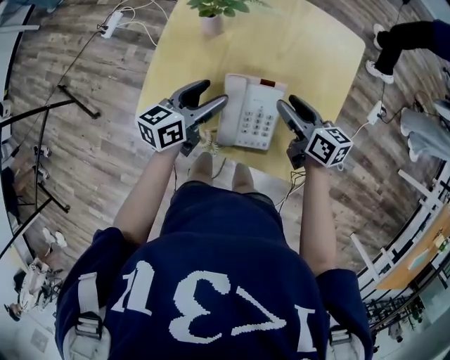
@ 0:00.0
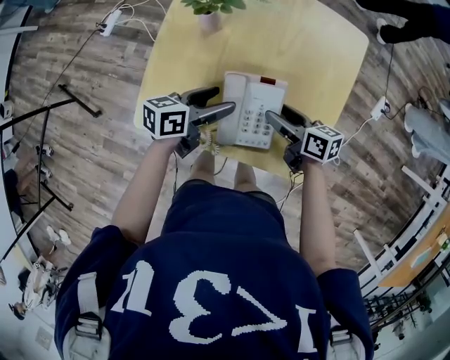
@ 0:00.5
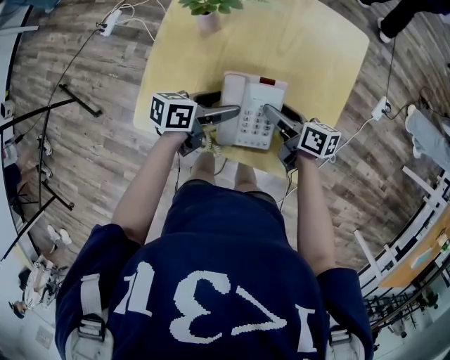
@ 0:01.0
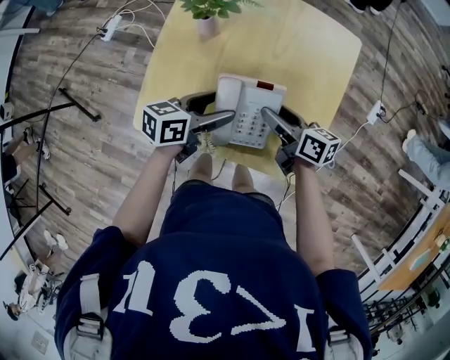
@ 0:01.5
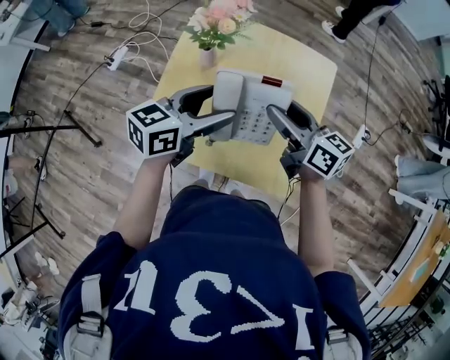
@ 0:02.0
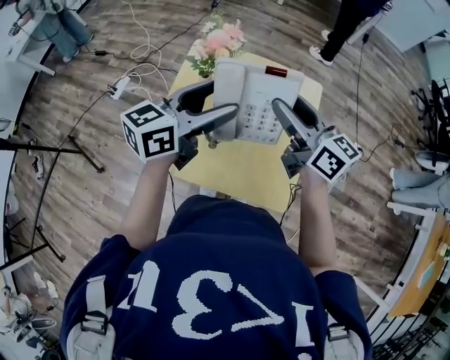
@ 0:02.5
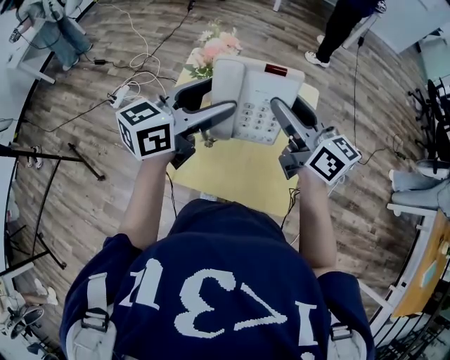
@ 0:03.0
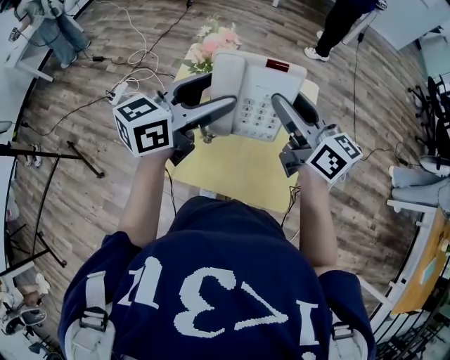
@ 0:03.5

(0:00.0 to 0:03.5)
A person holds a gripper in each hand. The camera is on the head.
0:00.0 - 0:02.0: Both grippers travel together upward, approximately 15 cm.
0:02.0 - 0:03.5: The two grippers go approximately 15 cm upward.

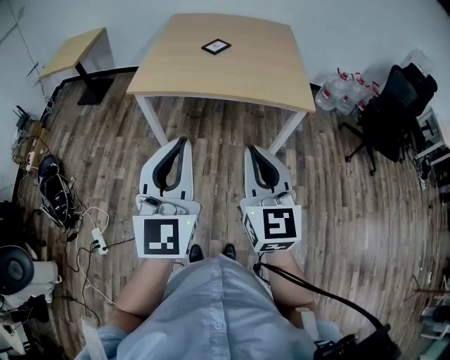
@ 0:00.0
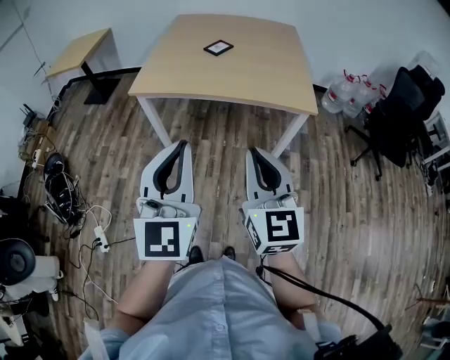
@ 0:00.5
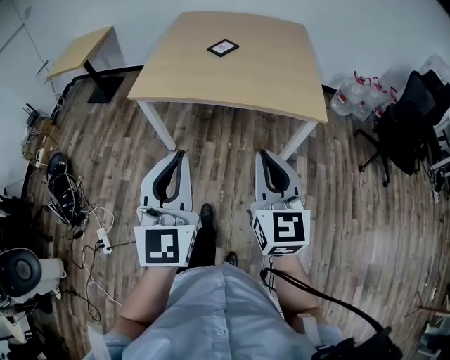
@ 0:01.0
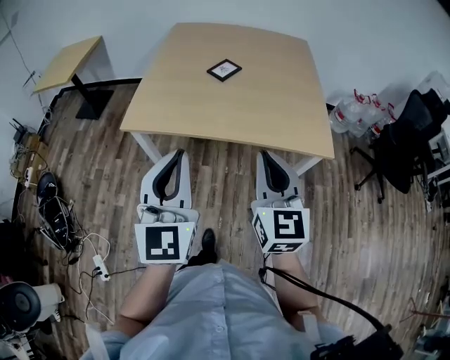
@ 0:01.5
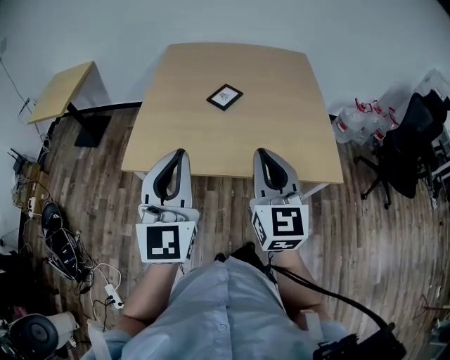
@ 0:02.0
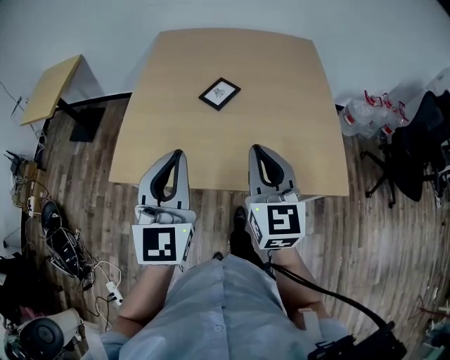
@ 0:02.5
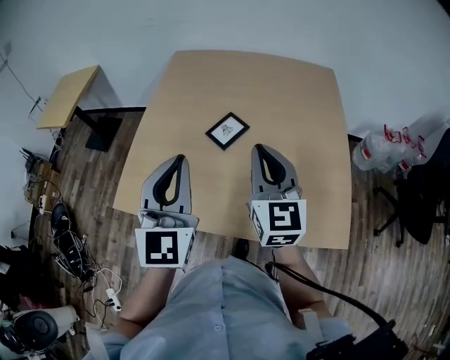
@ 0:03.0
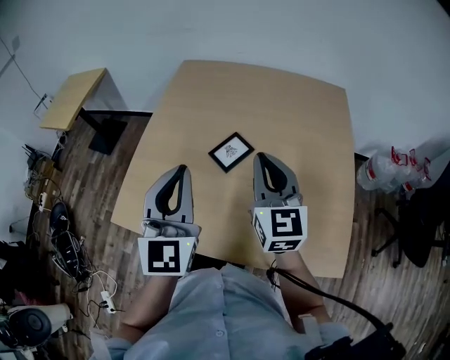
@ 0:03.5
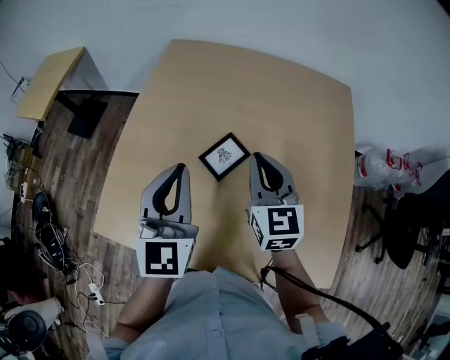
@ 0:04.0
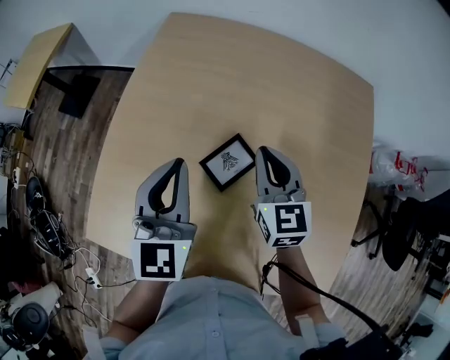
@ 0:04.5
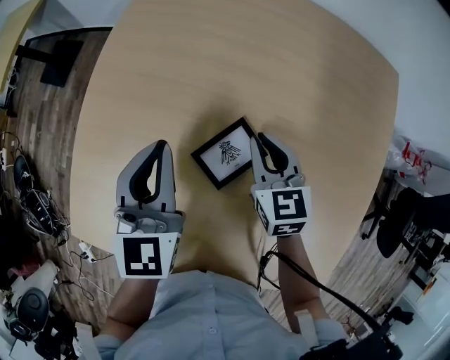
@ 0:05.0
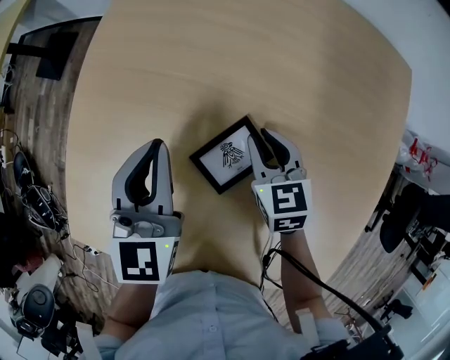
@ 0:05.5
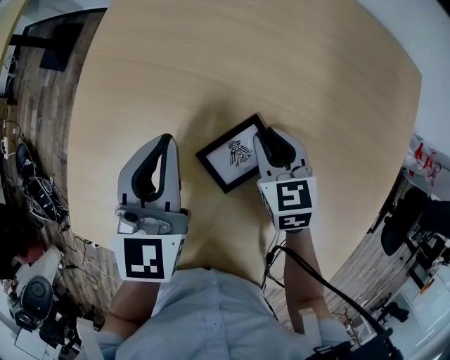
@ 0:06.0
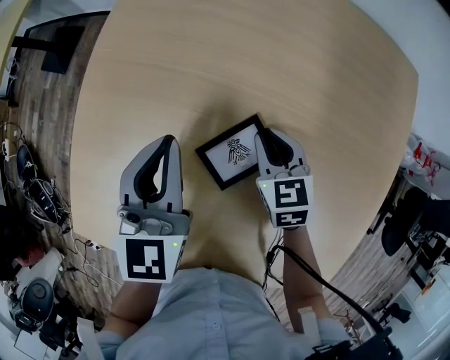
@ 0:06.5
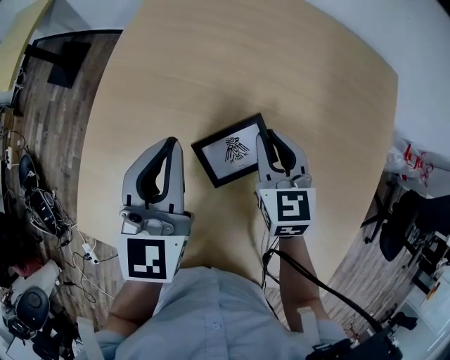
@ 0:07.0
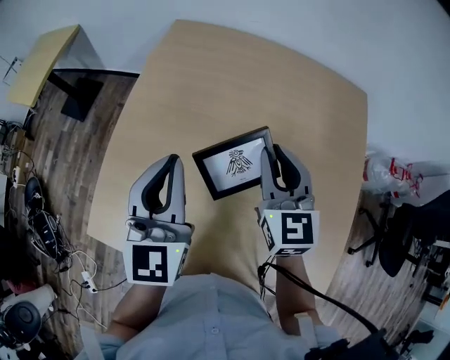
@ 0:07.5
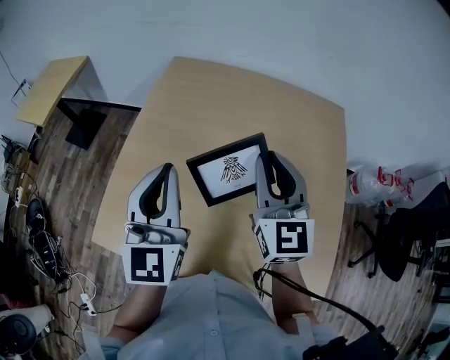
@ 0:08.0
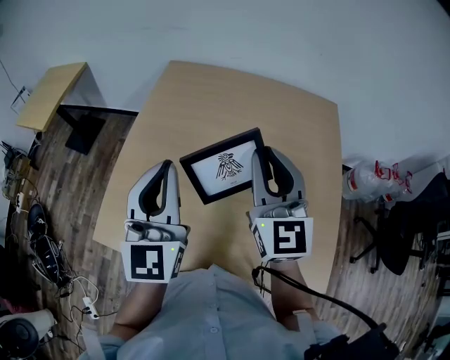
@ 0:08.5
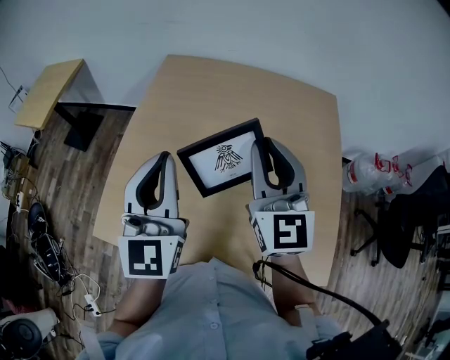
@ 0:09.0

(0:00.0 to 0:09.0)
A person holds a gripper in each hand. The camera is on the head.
0:00.0 - 0:02.0: The two grippers go some 30 cm forward.
0:02.0 - 0:04.5: Both grippers move forward, roughly 35 cm. The left gripper turns by some 20 degrees. Meanwhile the right gripper swivels some 20 degrees.
0:04.5 - 0:07.0: The right gripper travels downward by approximately 5 cm. Meanwhile the left gripper moves some 10 cm downward and comes back.
0:07.0 - 0:09.0: The right gripper moves upward, some 25 cm, and tips its fingers upward by some 30 degrees. The left gripper is displaced upward and backward by about 15 cm, and changes its angle by roughly 30 degrees.

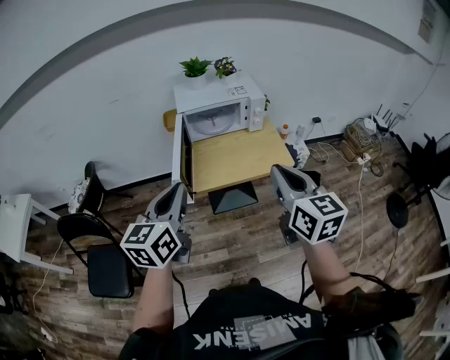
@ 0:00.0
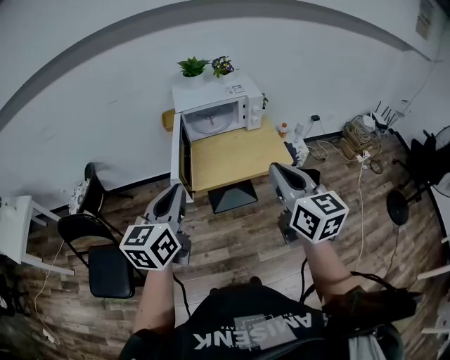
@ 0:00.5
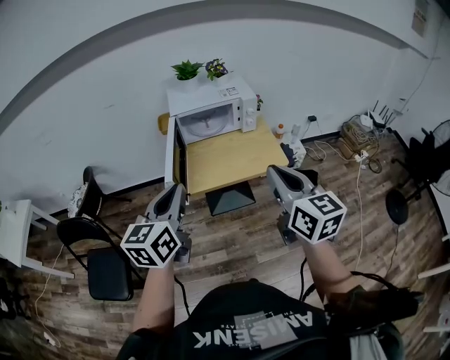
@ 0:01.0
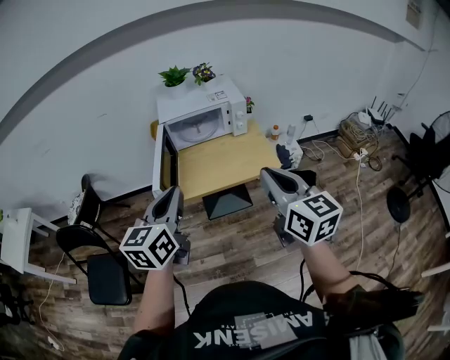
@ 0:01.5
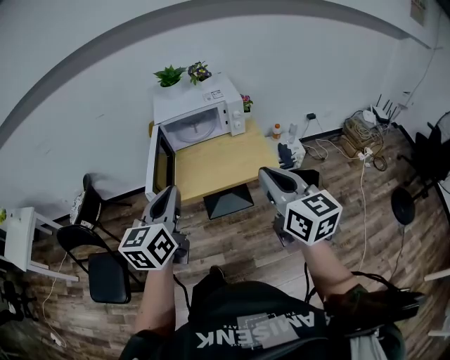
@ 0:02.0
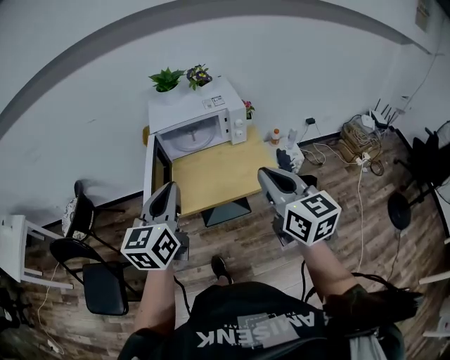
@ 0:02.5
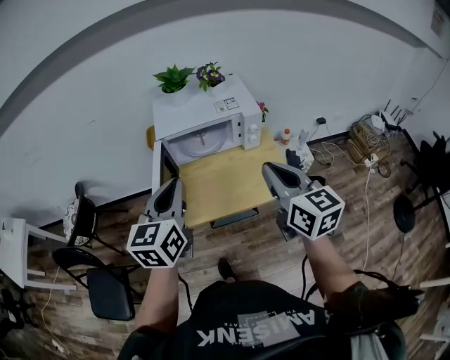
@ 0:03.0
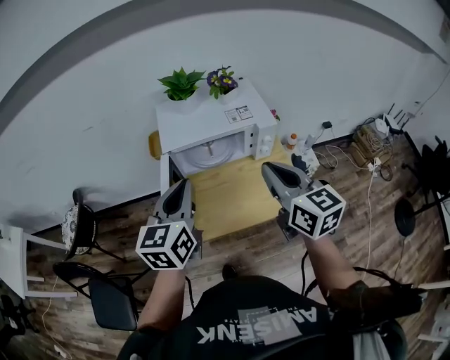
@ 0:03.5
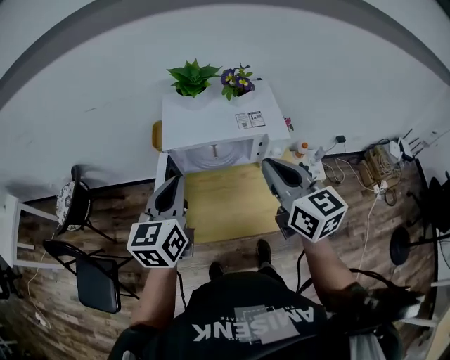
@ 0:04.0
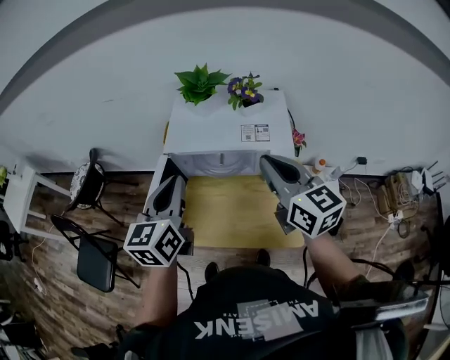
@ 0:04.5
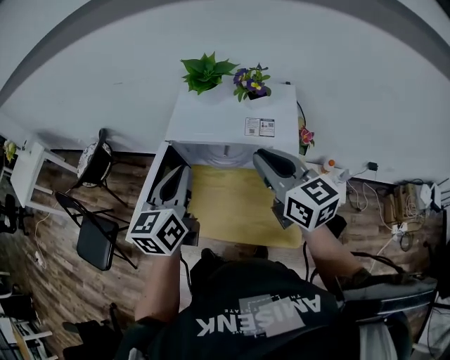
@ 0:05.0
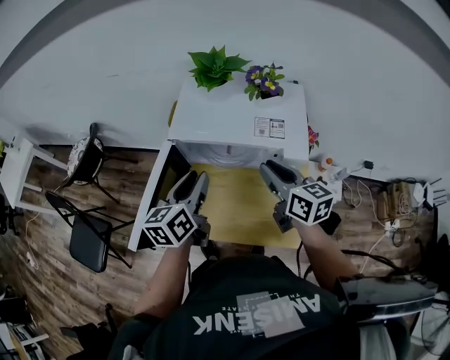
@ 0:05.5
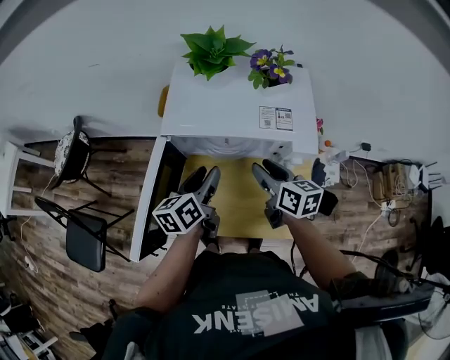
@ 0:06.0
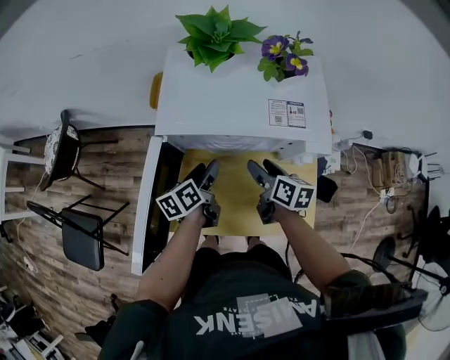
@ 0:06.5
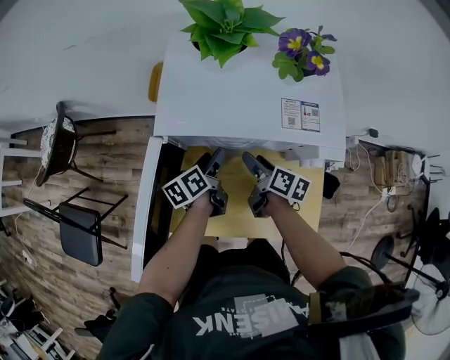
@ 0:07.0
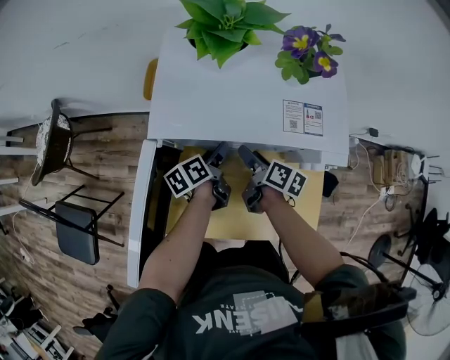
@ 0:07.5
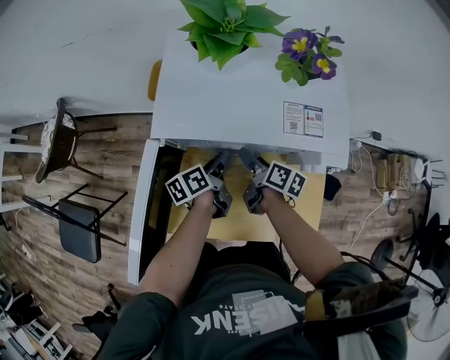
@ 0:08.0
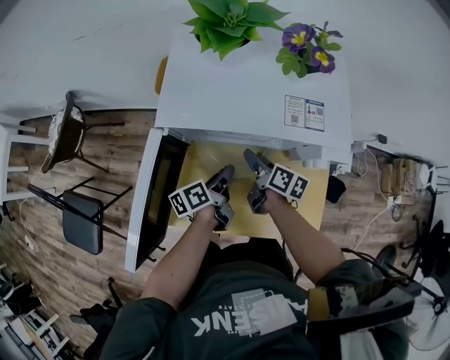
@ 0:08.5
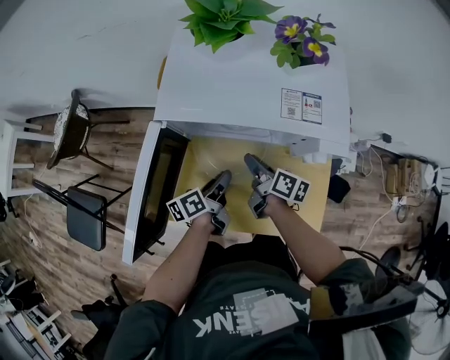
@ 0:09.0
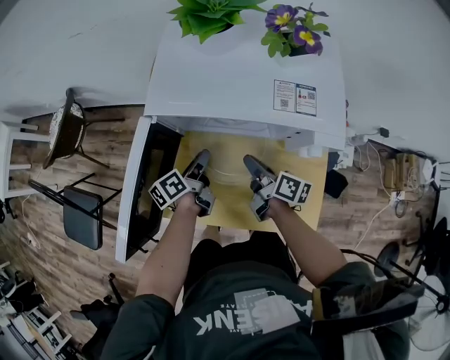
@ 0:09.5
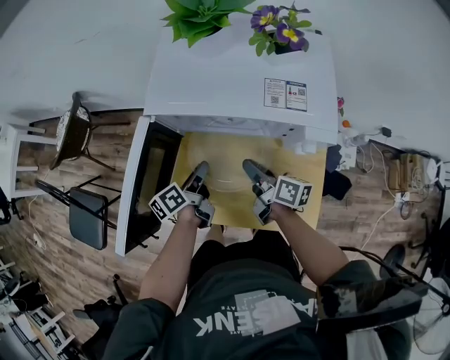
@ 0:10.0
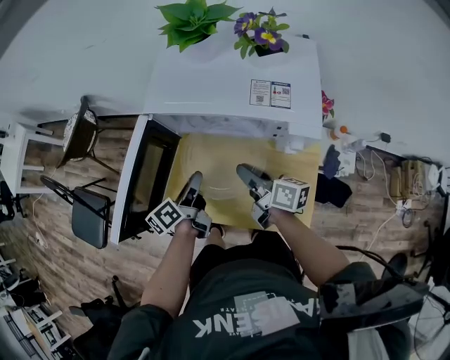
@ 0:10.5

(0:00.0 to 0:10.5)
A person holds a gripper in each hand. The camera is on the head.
0:00.0 - 0:02.0: The two grippers go roughly 10 cm to the right.
0:02.0 - 0:04.0: Both grippers move forward, some 35 cm.
0:04.0 - 0:06.5: The left gripper moves downward, roughly 30 cm, twists approximately 40 degrees counterclockwise, seen from behind, and opens up. The right gripper travels downward and forward by roughly 35 cm, rotates some 40 degrees, and opens.
0:06.5 - 0:08.5: The right gripper travels downward by approximately 5 cm. The left gripper moves approximately 5 cm forward and comes back, and closes its fingers.
0:08.5 - 0:10.5: The right gripper goes some 10 cm backward and upward, rotates roughly 30 degrees, and closes up; the left gripper travels backward and to the left by some 10 cm.

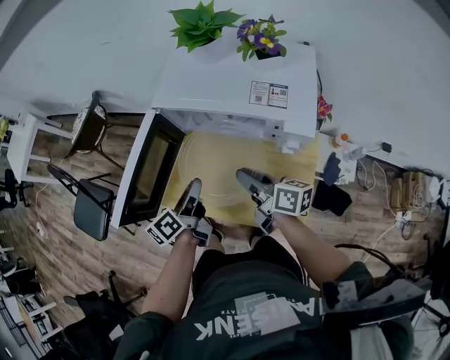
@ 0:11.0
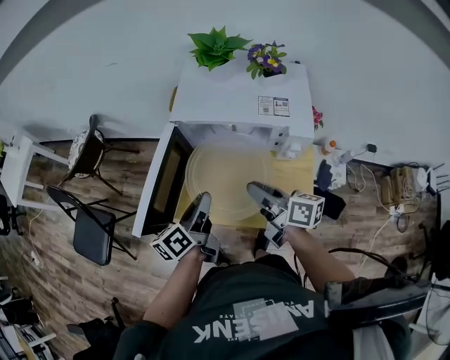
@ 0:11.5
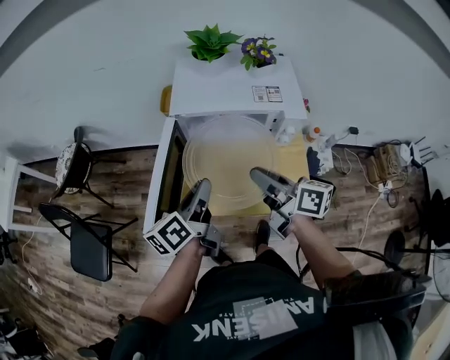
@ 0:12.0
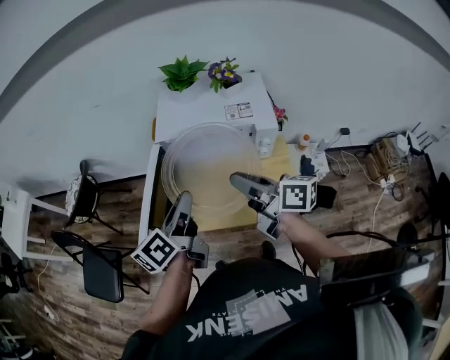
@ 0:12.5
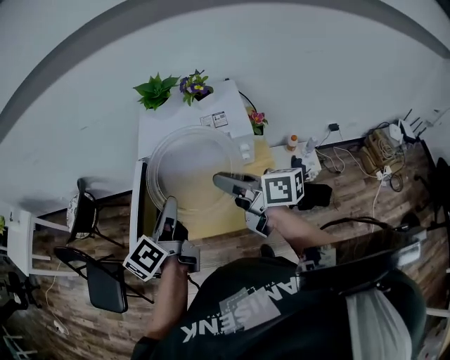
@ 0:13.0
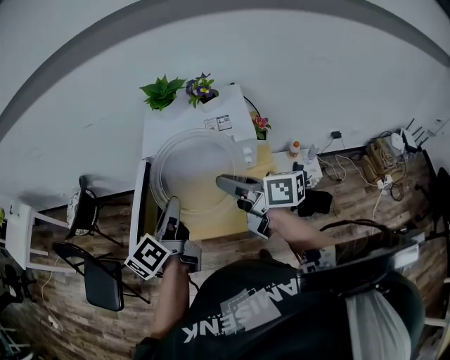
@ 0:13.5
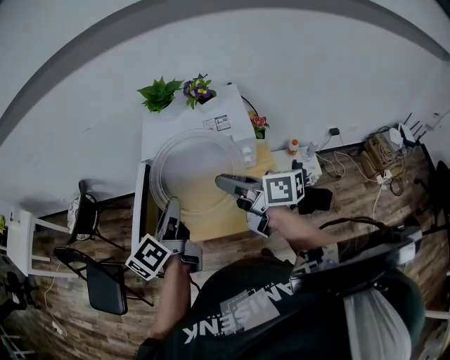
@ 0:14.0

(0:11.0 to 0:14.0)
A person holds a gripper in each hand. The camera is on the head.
0:11.0 - 0:12.5: The left gripper is displaced upward by roughly 20 cm, and rotates some 20 degrees. Meanwhile the right gripper shifts approximately 20 cm upward and backward.
0:12.5 - 0:14.0: There are only small adjustments of the grippers.
